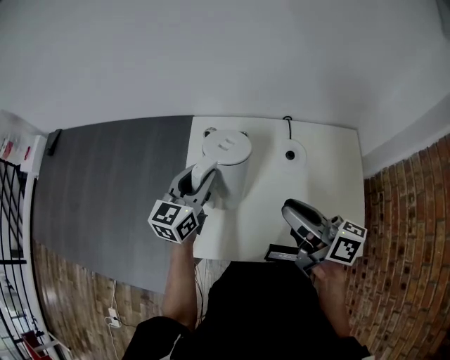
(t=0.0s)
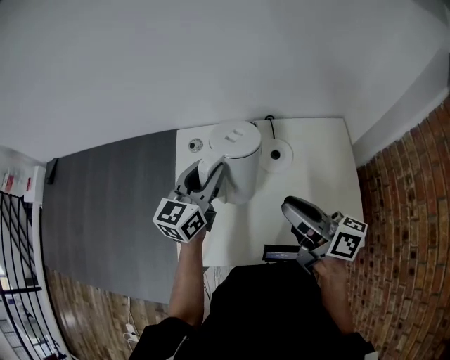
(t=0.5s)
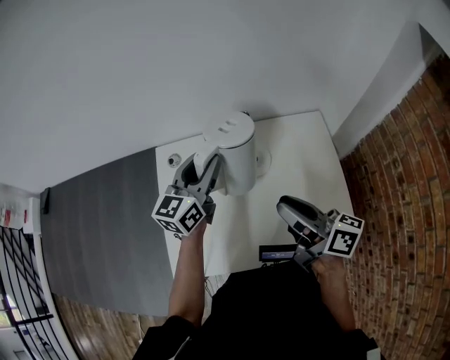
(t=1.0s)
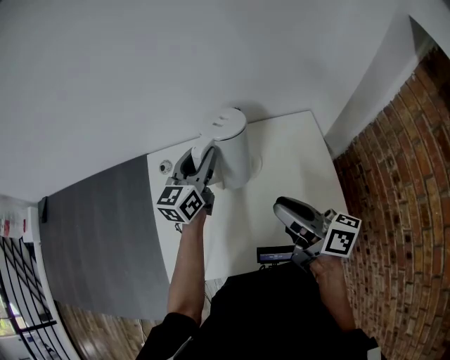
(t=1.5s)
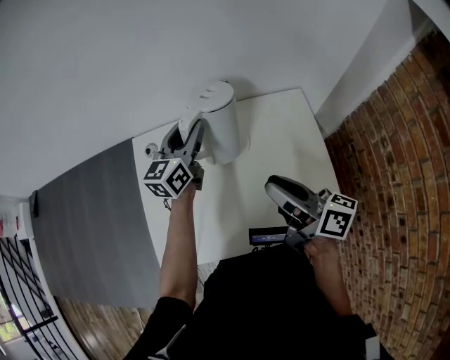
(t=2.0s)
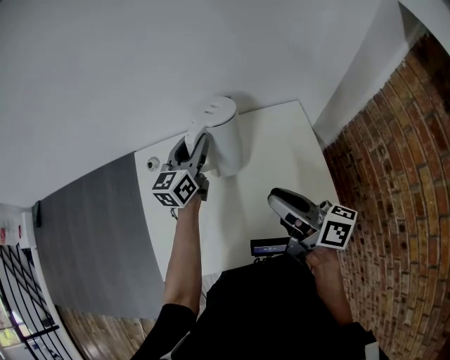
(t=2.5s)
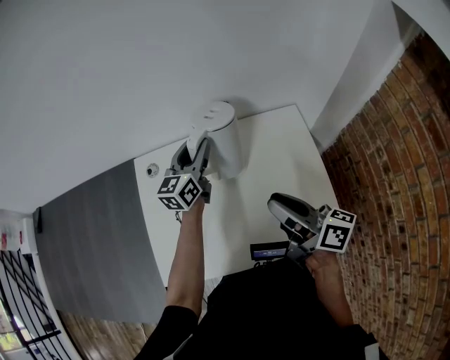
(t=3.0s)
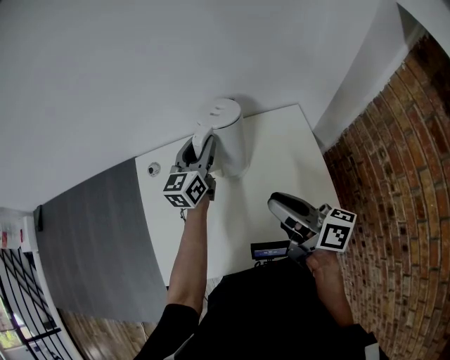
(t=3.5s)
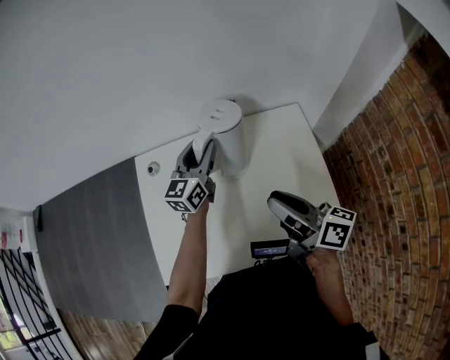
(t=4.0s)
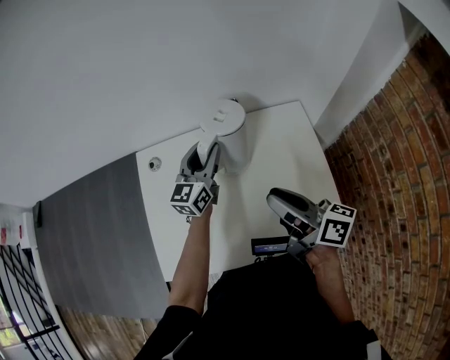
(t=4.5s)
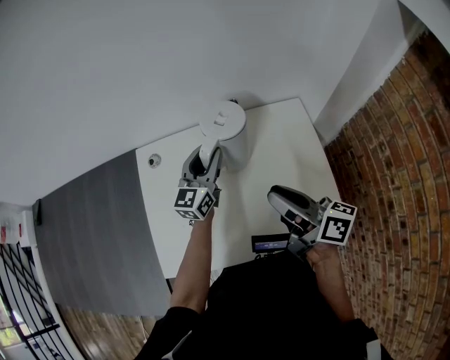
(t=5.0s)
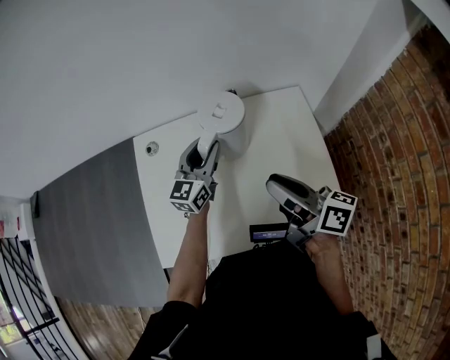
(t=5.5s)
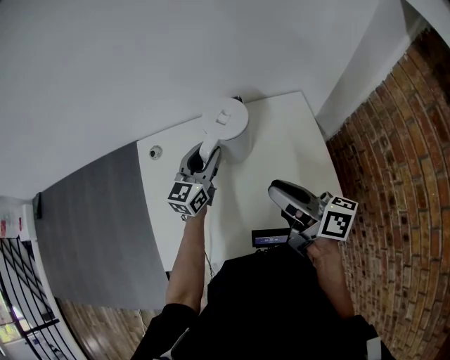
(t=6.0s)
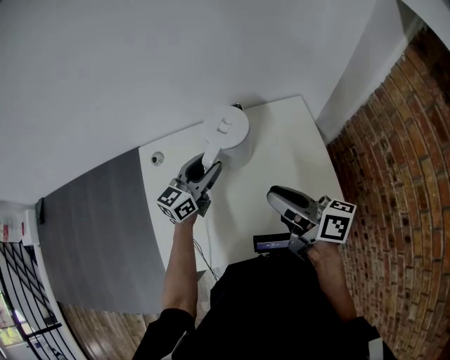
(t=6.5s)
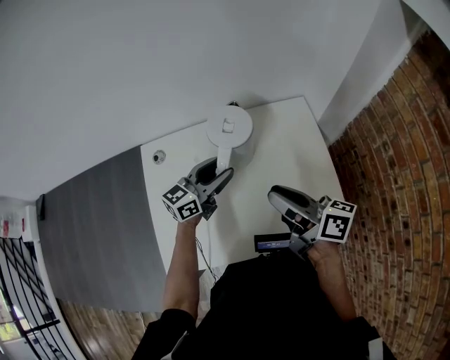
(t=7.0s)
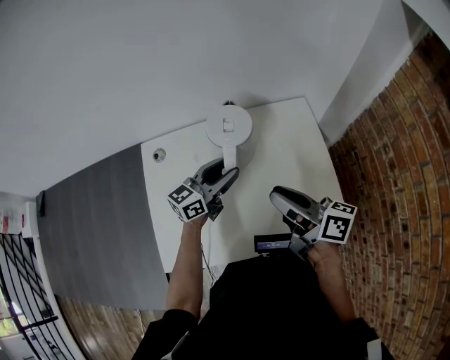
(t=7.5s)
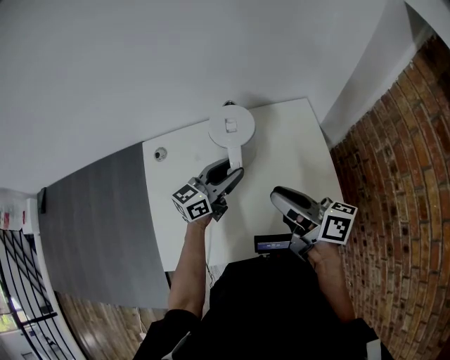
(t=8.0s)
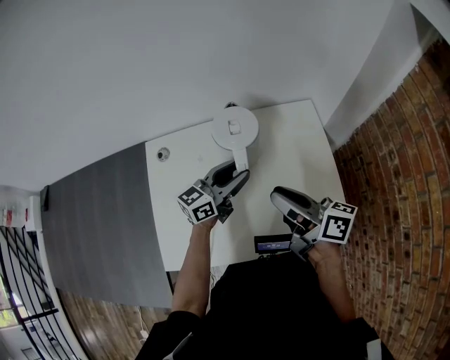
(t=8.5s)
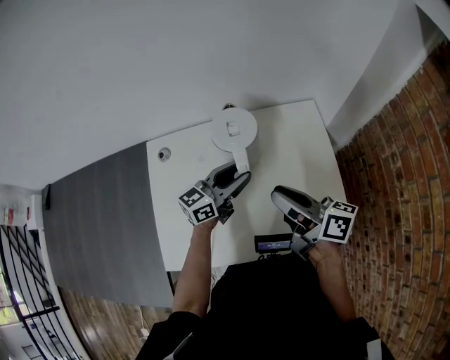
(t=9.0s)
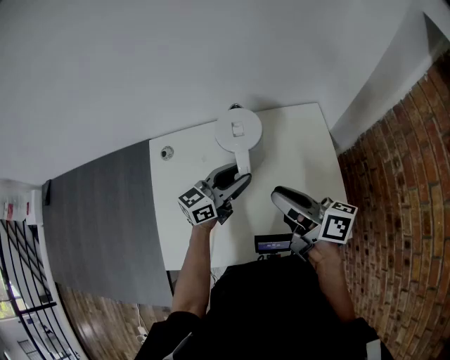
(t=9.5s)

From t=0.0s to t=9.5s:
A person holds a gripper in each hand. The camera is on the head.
From t=0.0s to t=2.0s: The right gripper moves to the right, roughly 15 cm. Meanwhile the left gripper heads to the right and forward, covering approximately 25 cm.
From t=2.0s to t=4.0s: The grippers move only a little.
From t=4.0s to t=5.5s: The left gripper shifts approximately 5 cm backward.
From t=5.5s to t=7.5s: The left gripper changes place by some 5 cm, and changes its angle by roughly 30 degrees.
From t=7.5s to t=9.5s: There are only small adjustments of the grippers.

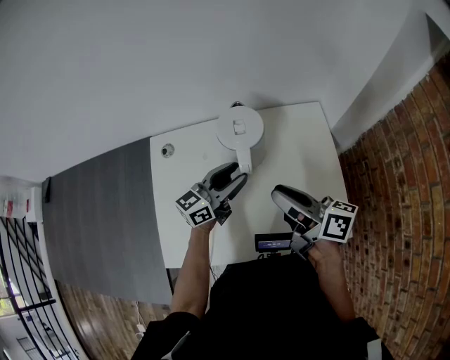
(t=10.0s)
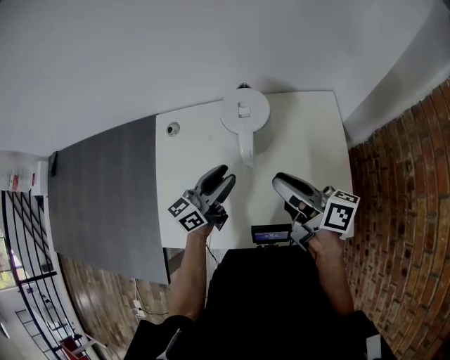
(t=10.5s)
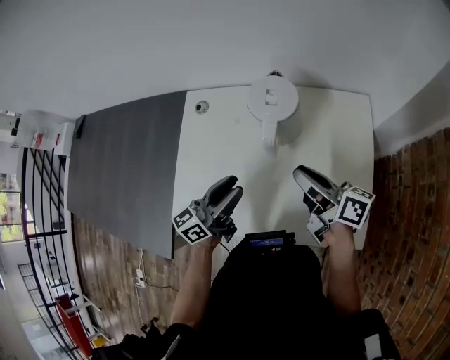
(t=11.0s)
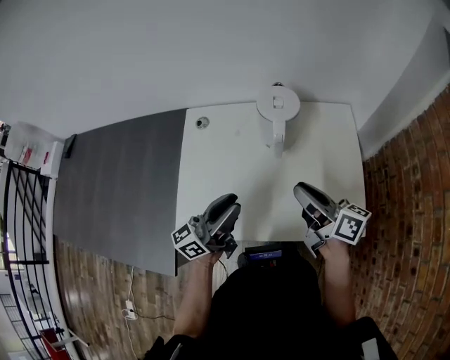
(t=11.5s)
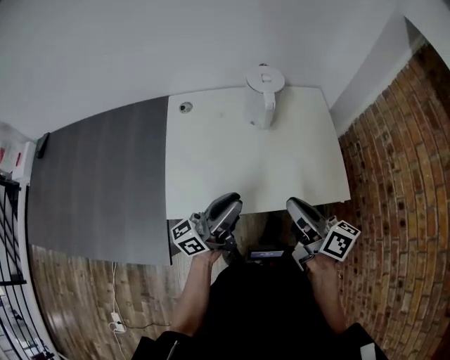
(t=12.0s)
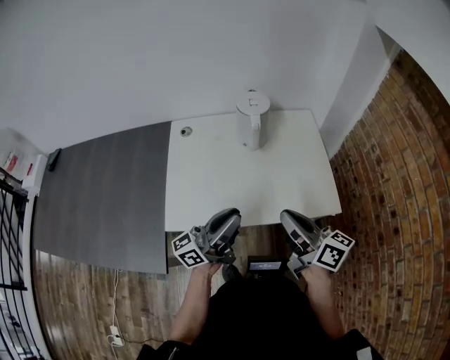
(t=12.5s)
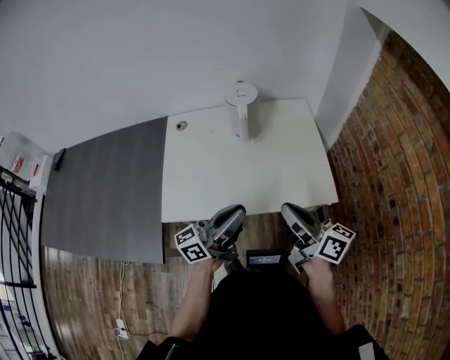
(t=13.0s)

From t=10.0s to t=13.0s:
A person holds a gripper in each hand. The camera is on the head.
From t=10.0s to t=11.5s: The left gripper shifts approximately 20 cm backward and to the left, and swivels about 20 degrees. Meanwhile the right gripper heads backward, covering about 5 cm.
From t=11.5s to t=13.0s: The left gripper is displaced backward and to the right by about 15 cm. Meanwhile the right gripper moves backward, approximately 20 cm.

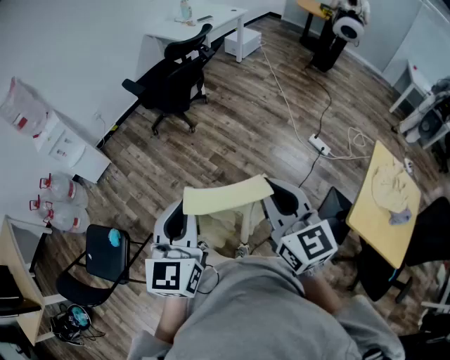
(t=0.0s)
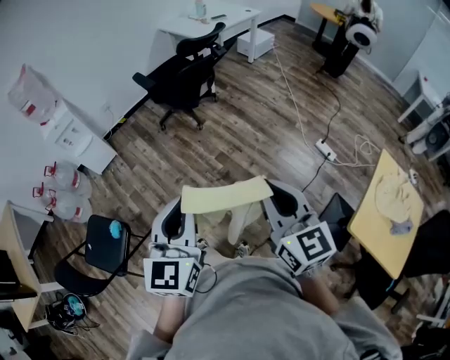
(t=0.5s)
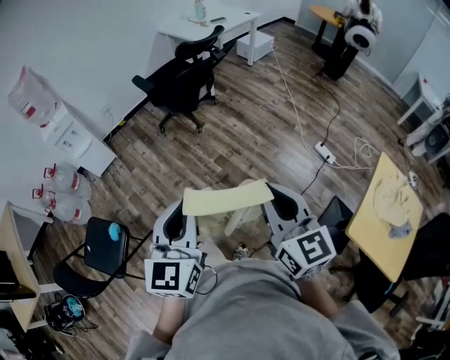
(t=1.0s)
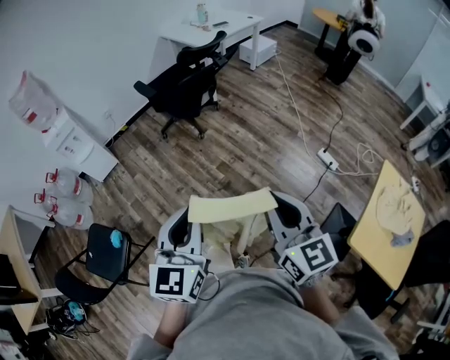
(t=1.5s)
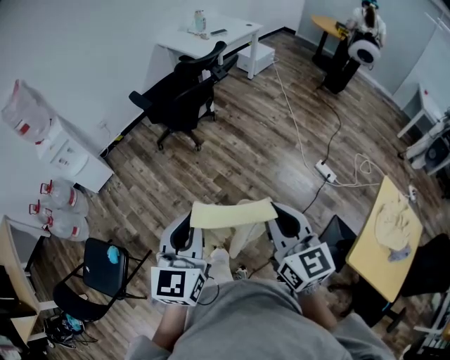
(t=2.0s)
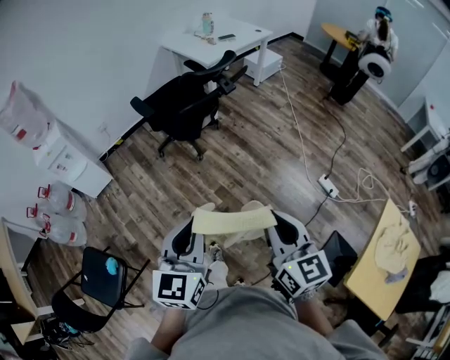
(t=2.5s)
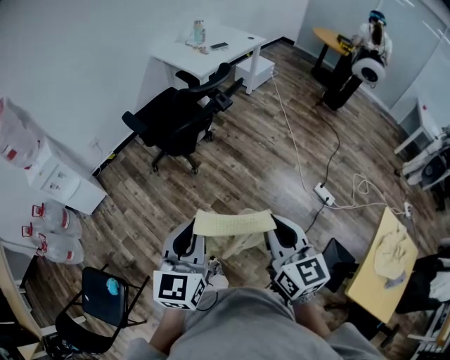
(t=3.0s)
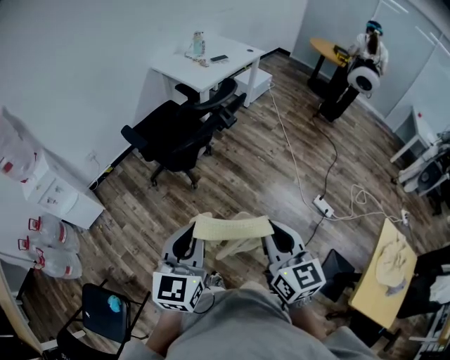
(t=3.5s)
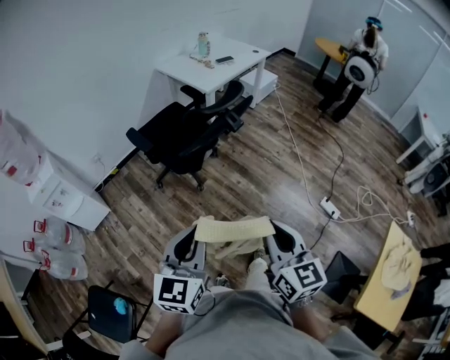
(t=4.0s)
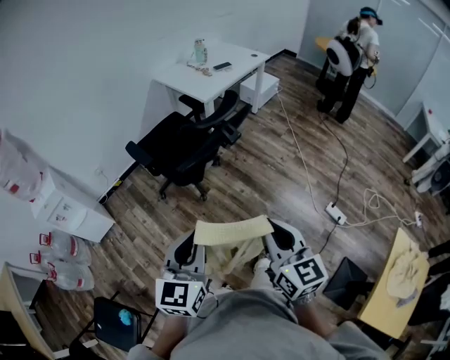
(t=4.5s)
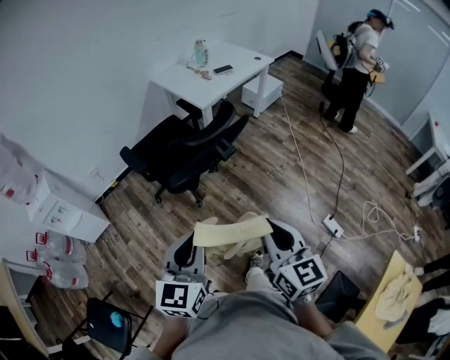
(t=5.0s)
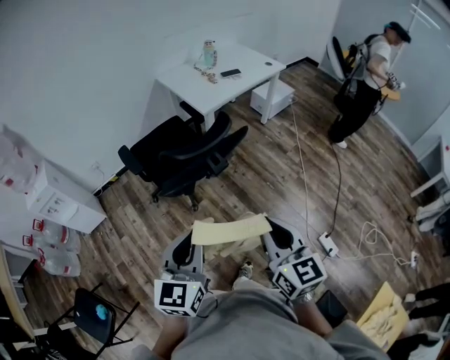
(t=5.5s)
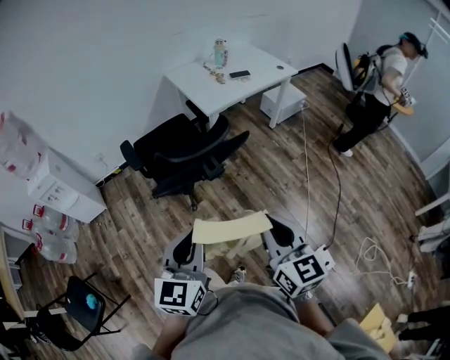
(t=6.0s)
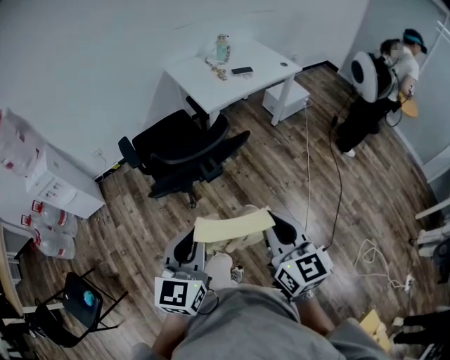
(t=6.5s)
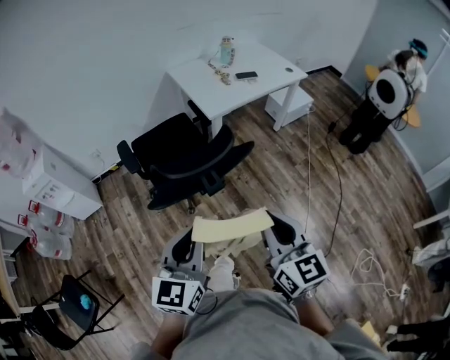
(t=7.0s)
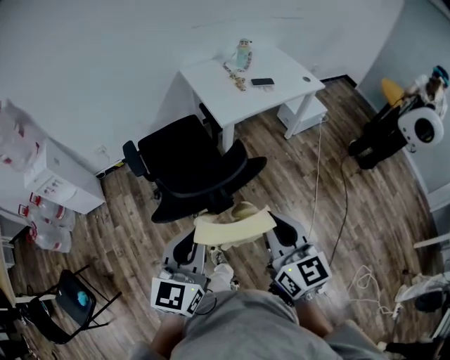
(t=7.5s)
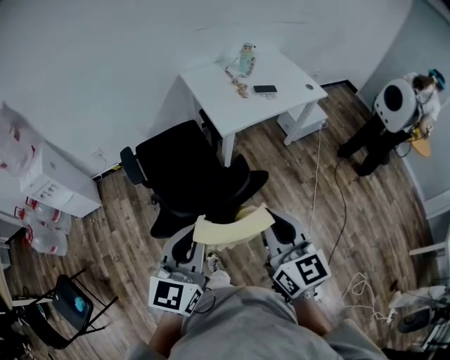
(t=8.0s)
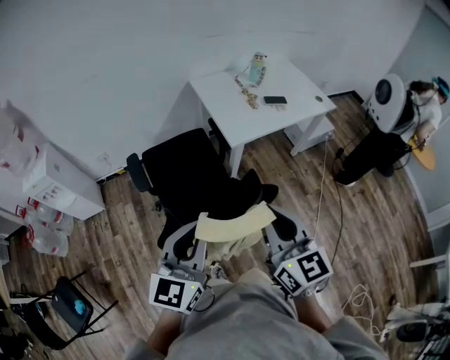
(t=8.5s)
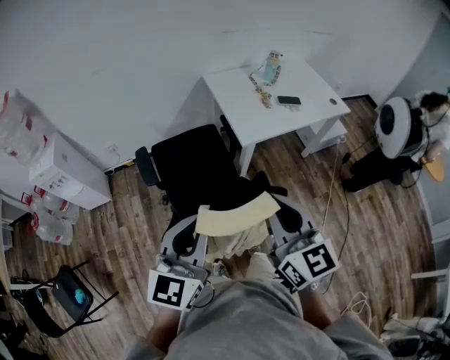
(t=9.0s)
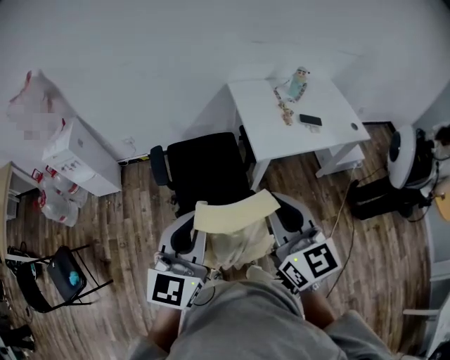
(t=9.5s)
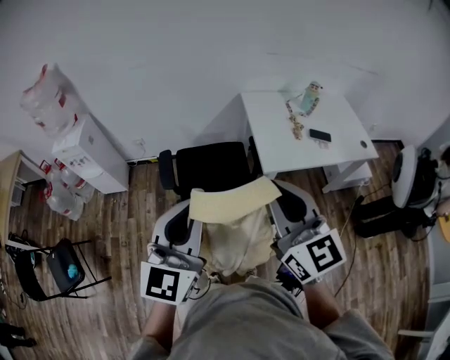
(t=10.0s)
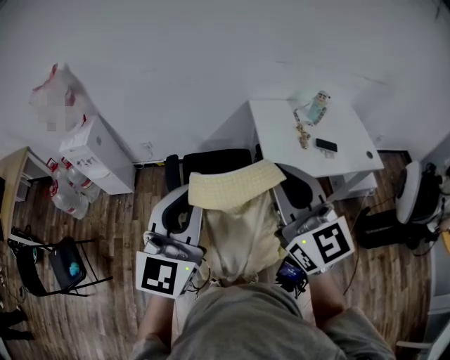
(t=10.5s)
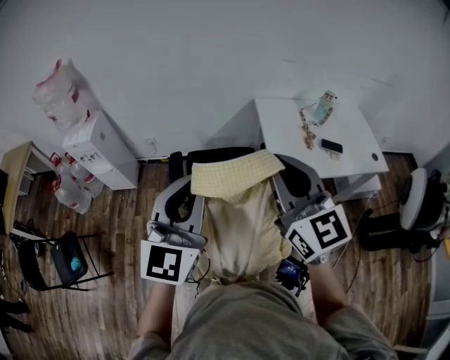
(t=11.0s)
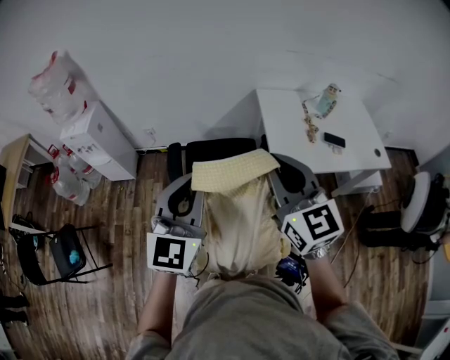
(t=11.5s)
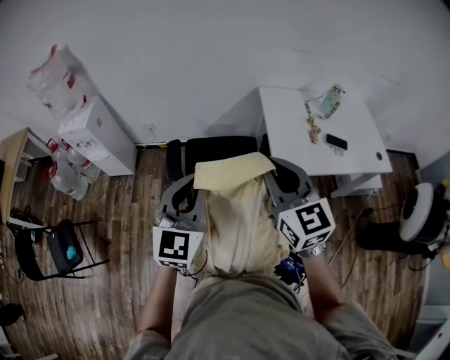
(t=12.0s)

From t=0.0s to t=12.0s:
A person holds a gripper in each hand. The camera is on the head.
From t=0.0s to t=2.0s: Both grippers move forward, approximately 10 cm.
From t=2.0s to t=4.0s: Both grippers travel together forward, about 25 cm.
From t=4.0s to t=6.0s: The grippers both shift forward and to the right by about 30 cm.
From t=6.0s to t=8.0s: Both grippers travel together forward, about 20 cm.
From t=8.0s to t=10.0s: Both grippers move forward and upward, some 20 cm. The left gripper swivels about 20 degrees, while the right gripper changes its angle by some 30 degrees.
From t=10.0s to t=12.0s: Both grippers move forward and downward, some 15 cm.

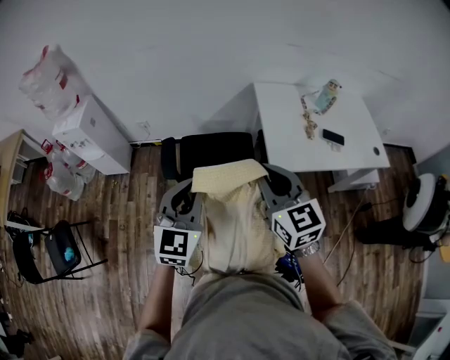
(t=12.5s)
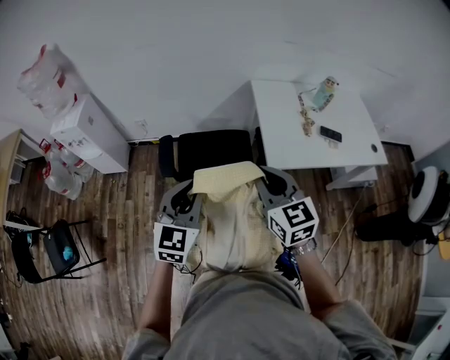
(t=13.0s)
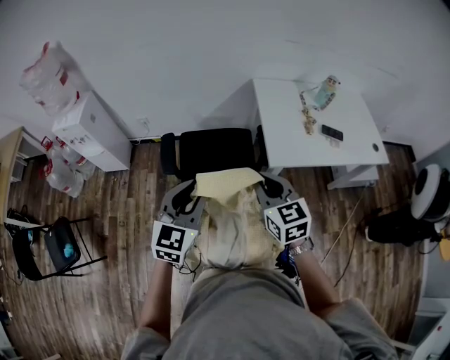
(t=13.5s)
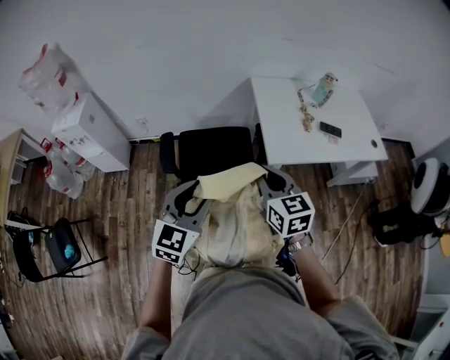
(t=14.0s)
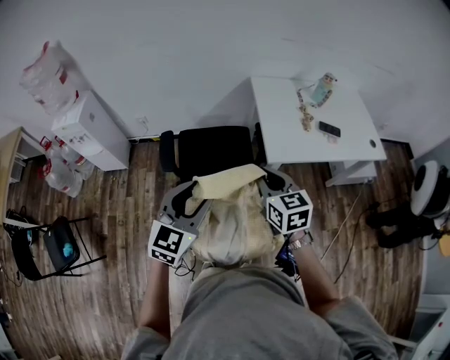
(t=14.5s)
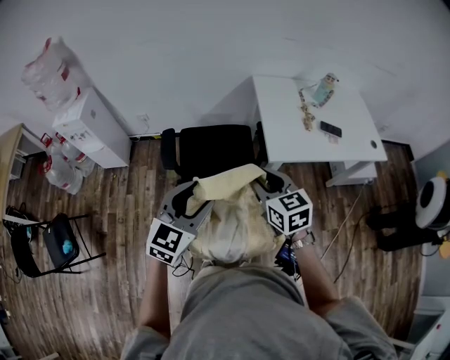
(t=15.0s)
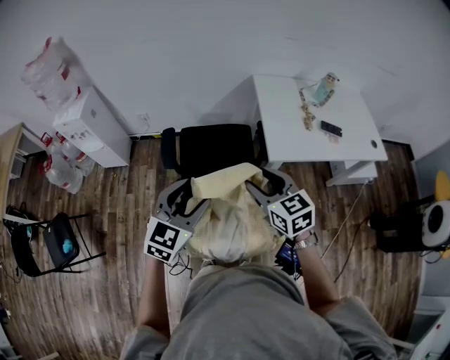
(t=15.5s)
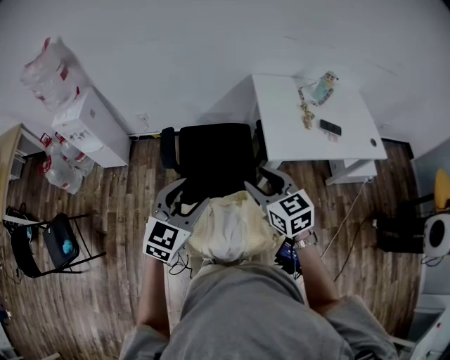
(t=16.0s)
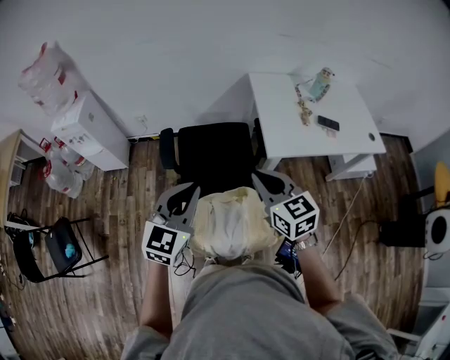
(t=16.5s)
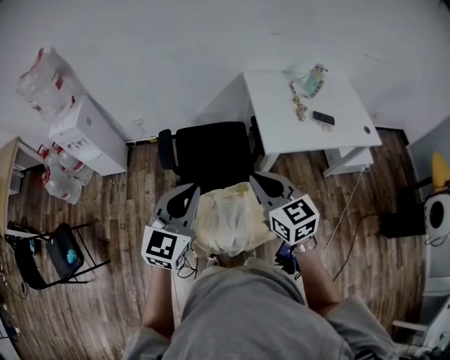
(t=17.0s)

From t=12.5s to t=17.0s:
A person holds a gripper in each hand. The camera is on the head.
From t=12.5s to t=14.5s: The right gripper travels downward by about 10 cm; the left gripper heads backward, covering approximately 5 cm, and opens up.
From t=14.5s to t=17.0s: The left gripper shifts by approximately 5 cm, and closes its fingers. Meanwhile the right gripper shifts roughly 5 cm backward, and opens, then closes again.
